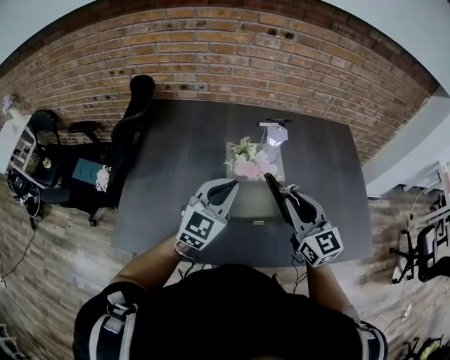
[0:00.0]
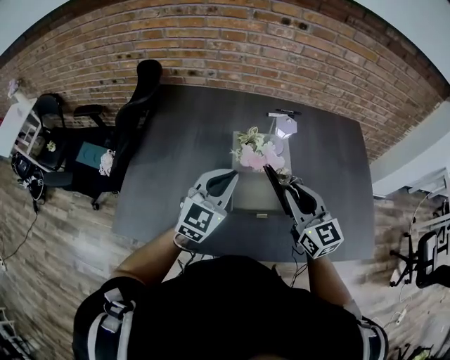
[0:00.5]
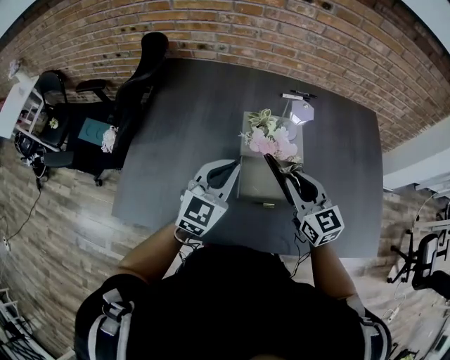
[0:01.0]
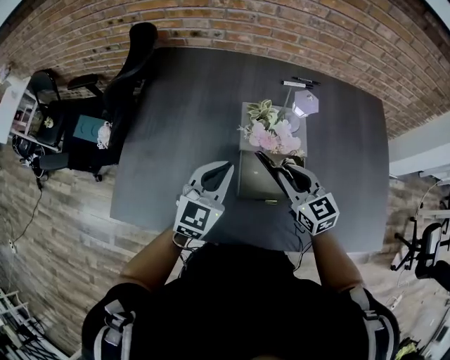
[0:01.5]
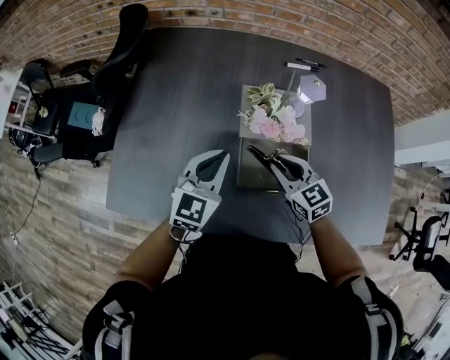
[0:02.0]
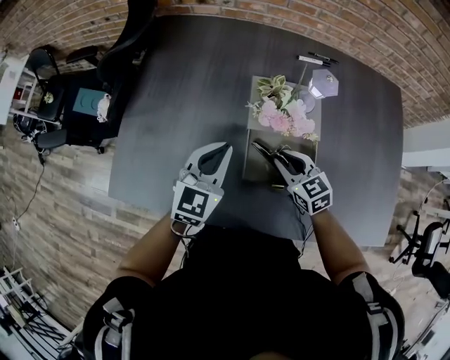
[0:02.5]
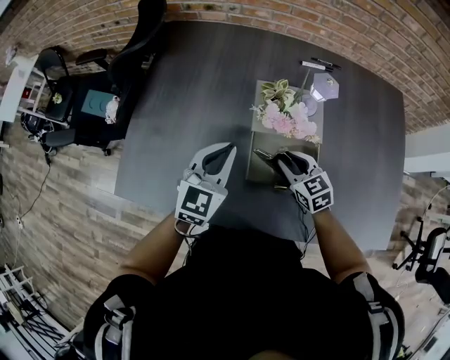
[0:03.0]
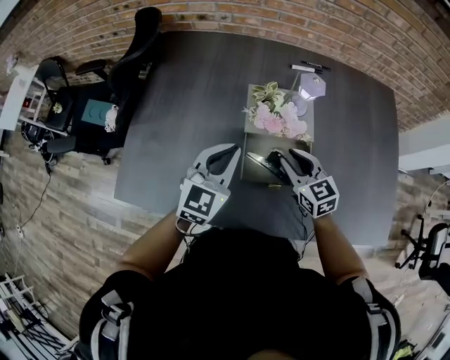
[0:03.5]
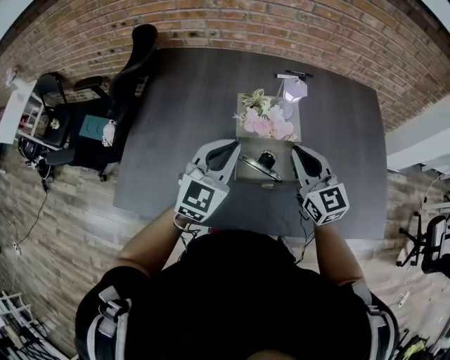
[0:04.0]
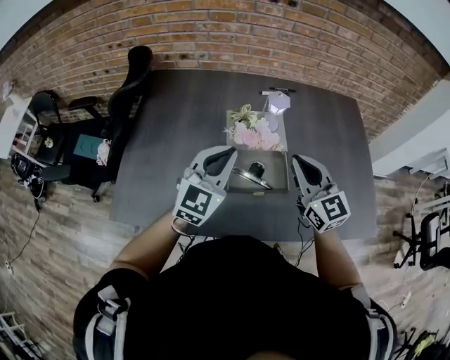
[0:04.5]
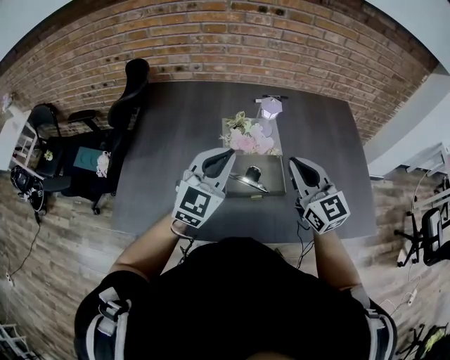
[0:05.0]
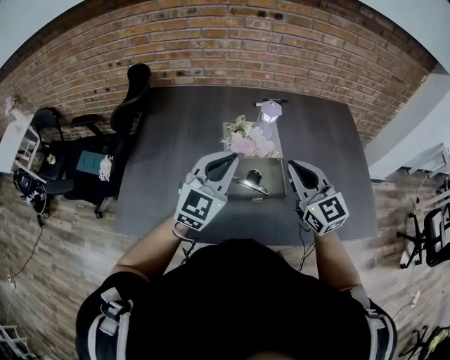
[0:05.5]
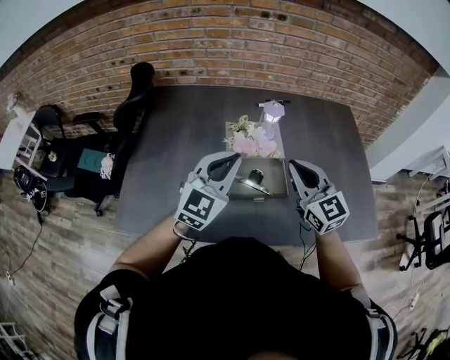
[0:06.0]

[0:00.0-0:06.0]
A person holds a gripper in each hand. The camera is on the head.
0:00.0 to 0:02.0: The right gripper travels downward and forward by approximately 20 cm, and swivels roughly 30 degrees. Meanwhile the left gripper shifts roughly 10 cm downward.
0:02.0 to 0:04.0: The left gripper shifts roughly 10 cm upward. The right gripper heads upward, covering roughly 15 cm, and rotates approximately 20 degrees.
0:04.0 to 0:06.0: The right gripper heads upward and backward, covering about 10 cm. Meanwhile the left gripper goes some 5 cm upward.

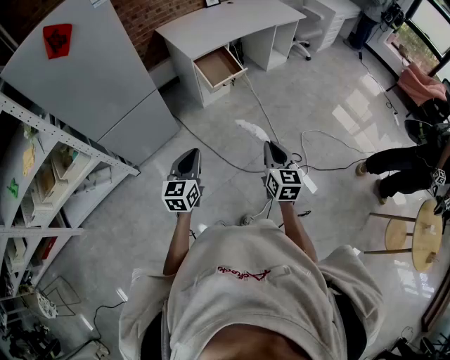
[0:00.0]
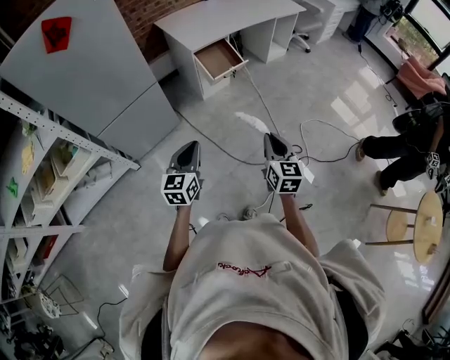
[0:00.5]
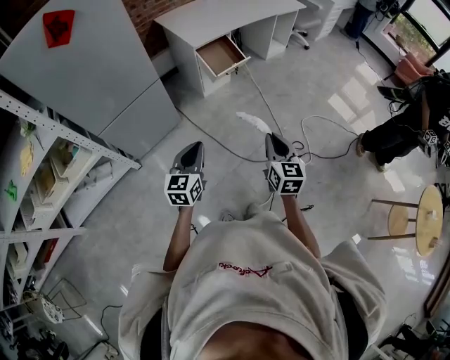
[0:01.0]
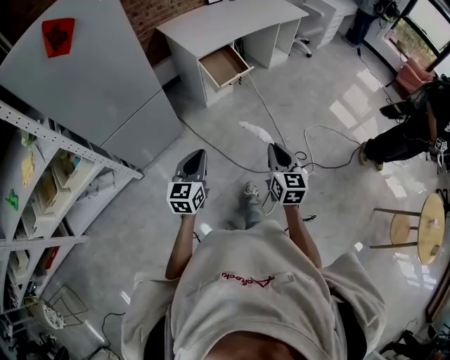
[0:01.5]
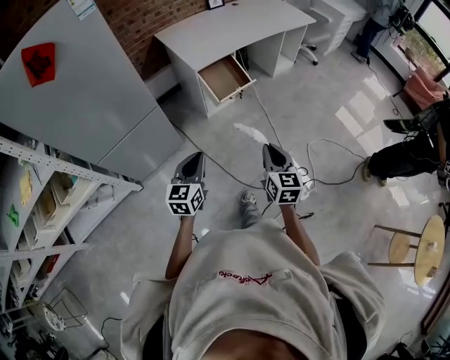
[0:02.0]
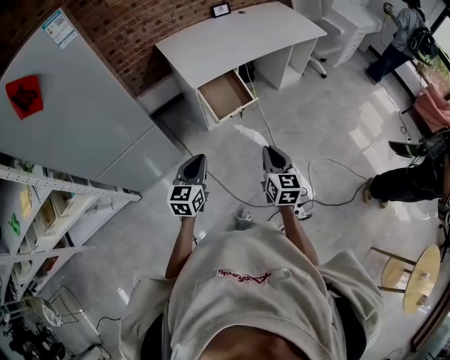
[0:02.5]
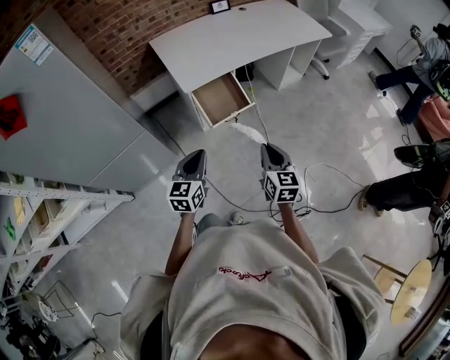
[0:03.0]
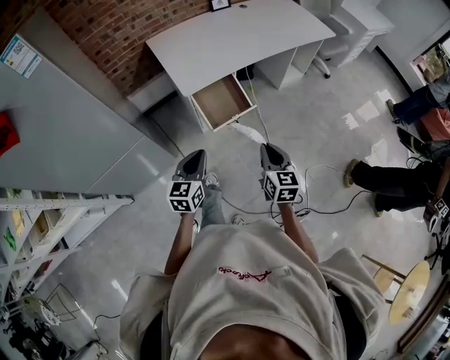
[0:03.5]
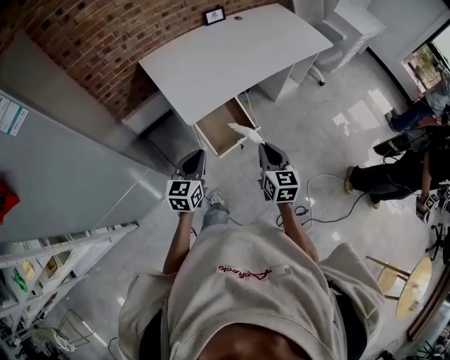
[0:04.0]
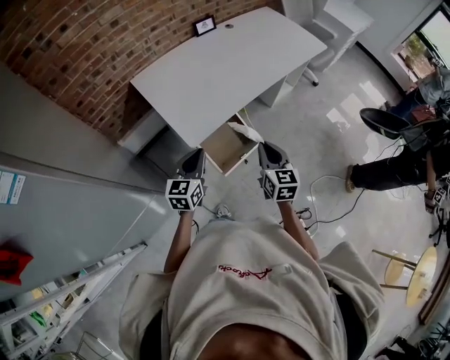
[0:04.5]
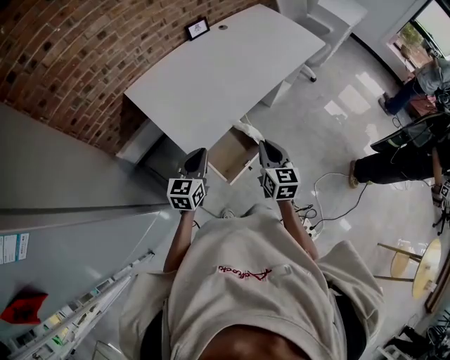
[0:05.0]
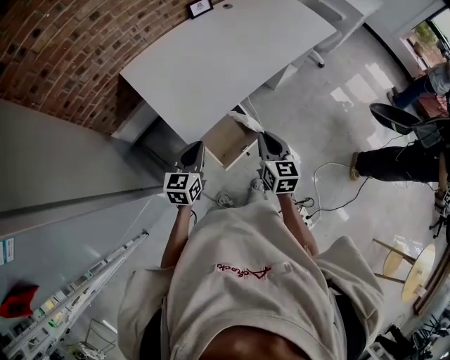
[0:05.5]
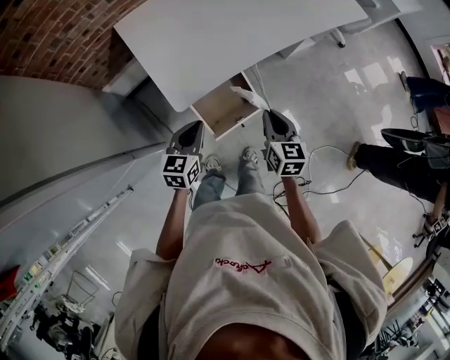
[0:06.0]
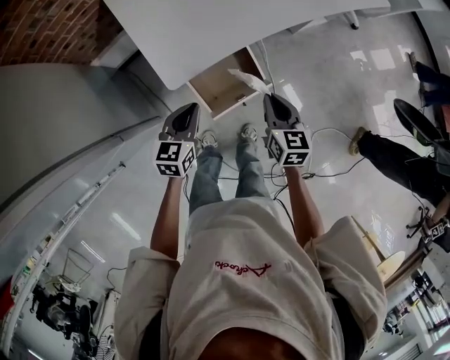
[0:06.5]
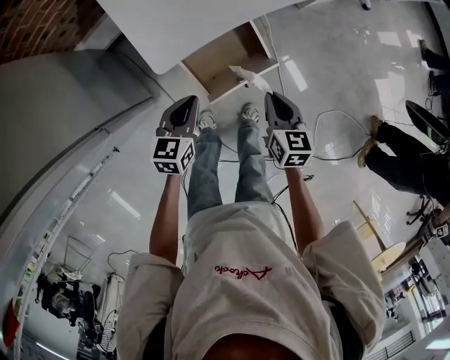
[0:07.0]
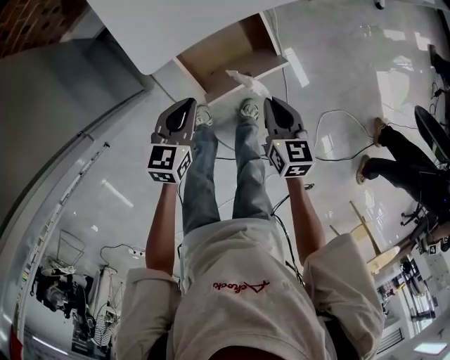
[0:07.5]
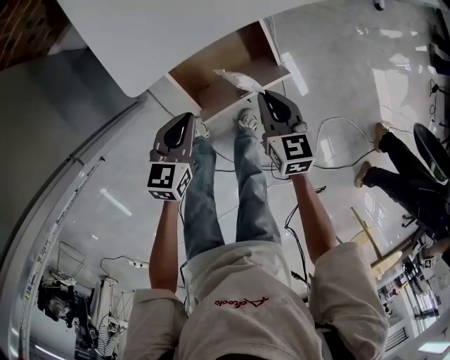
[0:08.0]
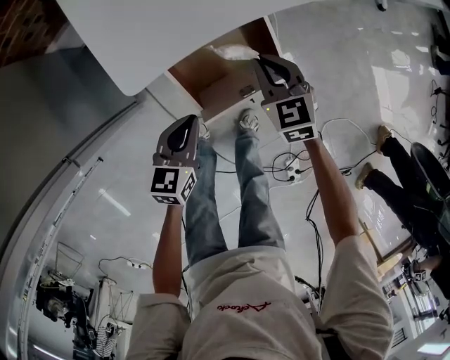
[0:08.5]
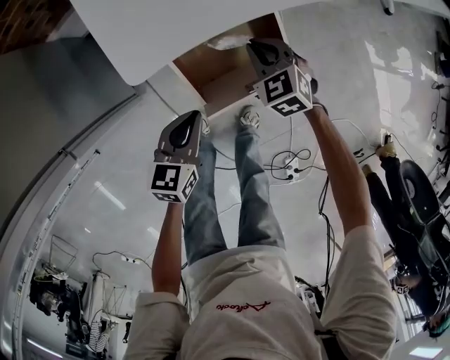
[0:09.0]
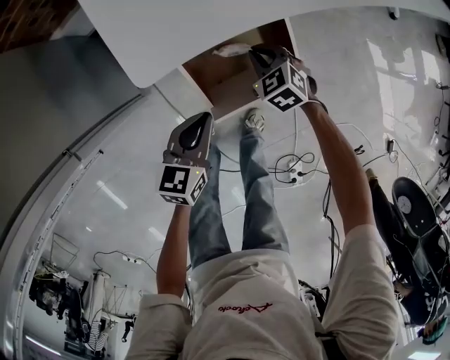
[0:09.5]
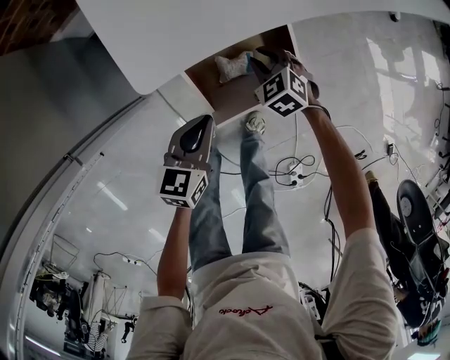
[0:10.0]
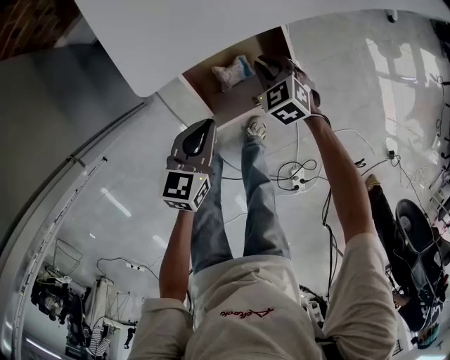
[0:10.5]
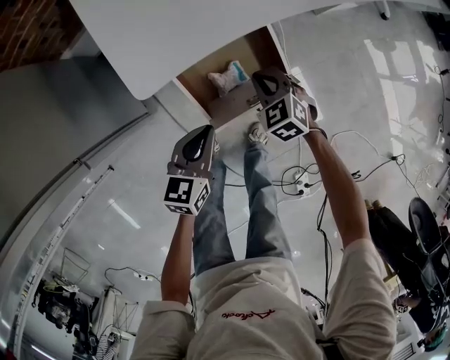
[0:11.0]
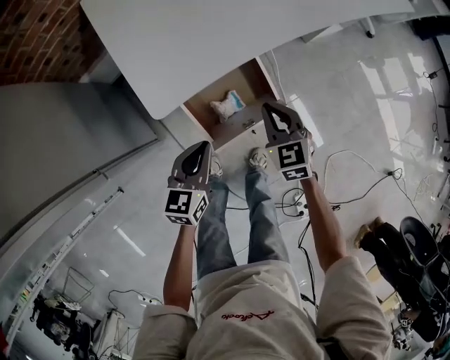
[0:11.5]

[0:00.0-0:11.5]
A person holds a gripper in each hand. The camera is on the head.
0:00.0 to 0:02.0: The left gripper goes approximately 15 cm forward, while the right gripper goes approximately 15 cm forward and to the left.
0:02.0 to 0:04.0: Both grippers move forward, about 40 cm.
0:04.0 to 0:06.0: The two grippers go roughly 20 cm forward and downward.
0:06.0 to 0:07.5: The grippers both shift downward by approximately 20 cm.
0:07.5 to 0:09.5: The left gripper shifts approximately 5 cm downward; the right gripper shifts approximately 20 cm downward, forward and to the left, and rolls counterclockwise, seen from behind, by approximately 50 degrees.
0:09.5 to 0:11.5: The right gripper is displaced upward by roughly 15 cm, and changes its angle by about 30 degrees. The left gripper moves upward, about 10 cm.

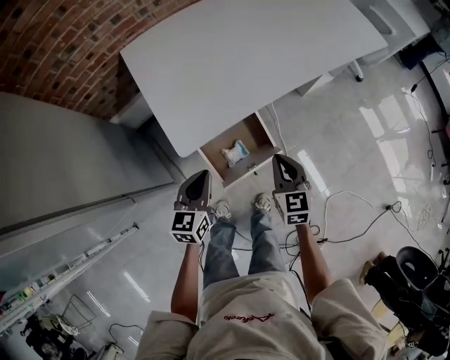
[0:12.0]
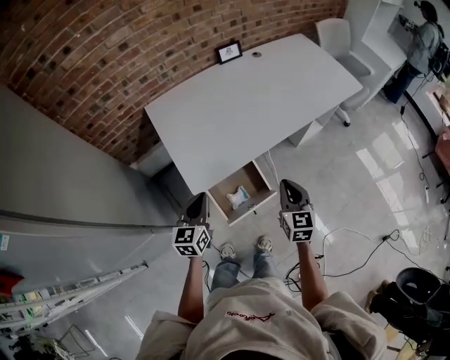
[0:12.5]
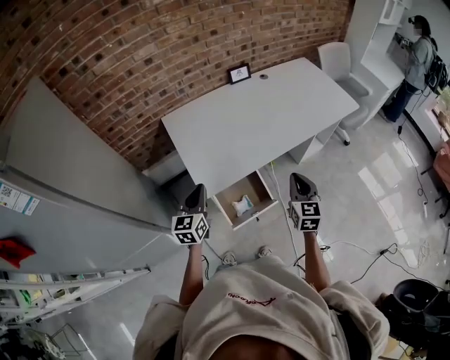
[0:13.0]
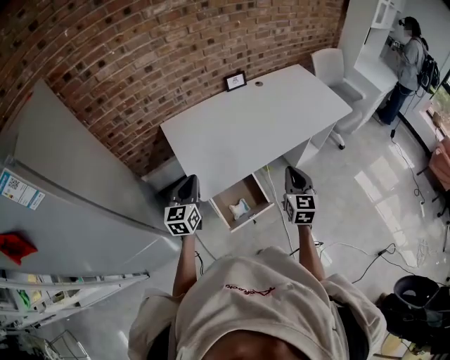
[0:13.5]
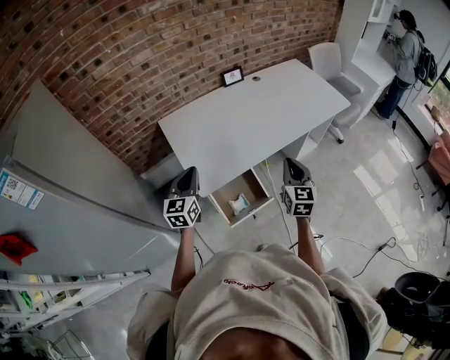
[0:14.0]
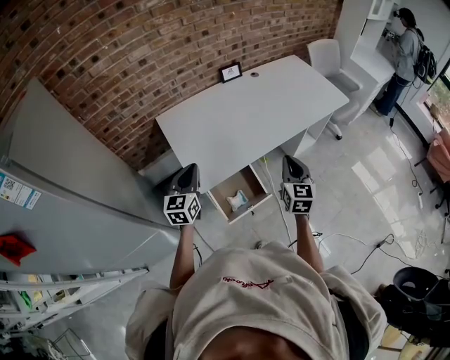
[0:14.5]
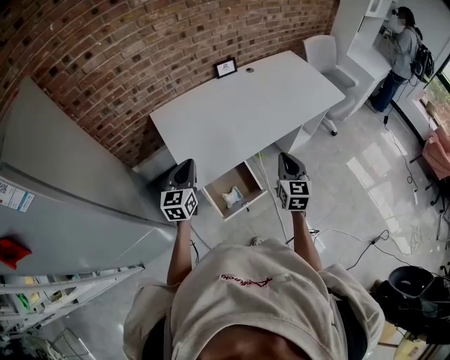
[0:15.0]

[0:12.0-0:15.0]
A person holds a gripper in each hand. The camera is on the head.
0:12.0 to 0:13.5: Both grippers travel together upward, roughly 25 cm.
0:13.5 to 0:15.0: The grippers make only small movements.

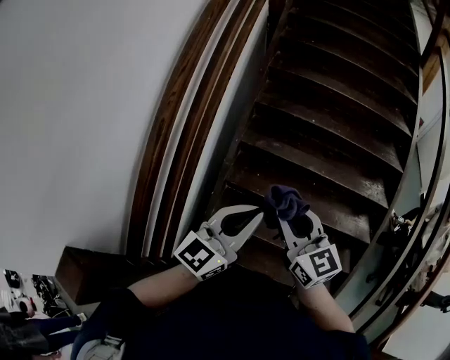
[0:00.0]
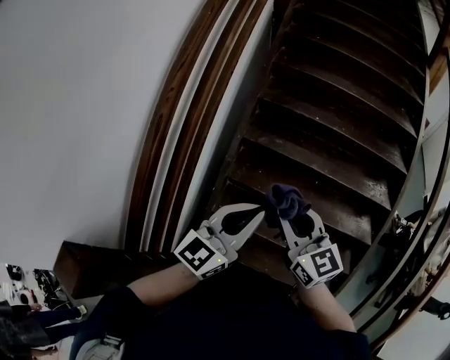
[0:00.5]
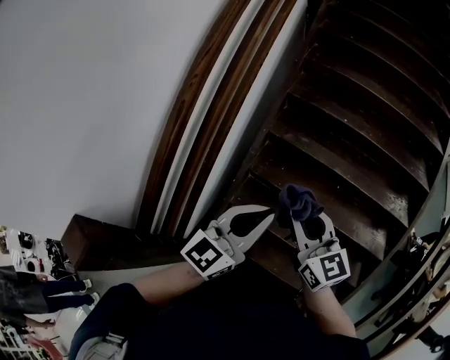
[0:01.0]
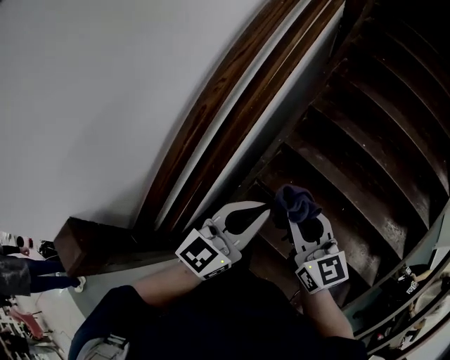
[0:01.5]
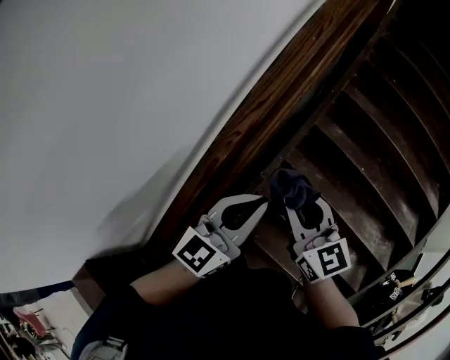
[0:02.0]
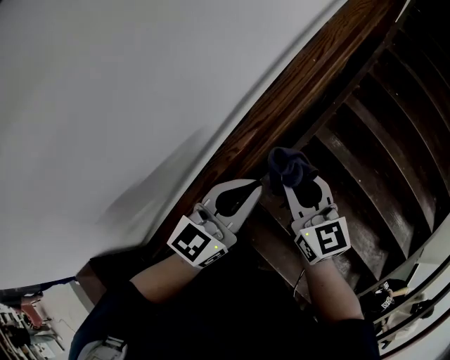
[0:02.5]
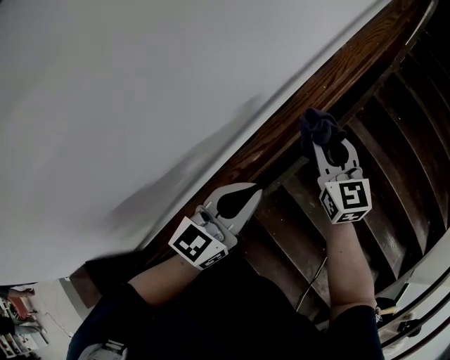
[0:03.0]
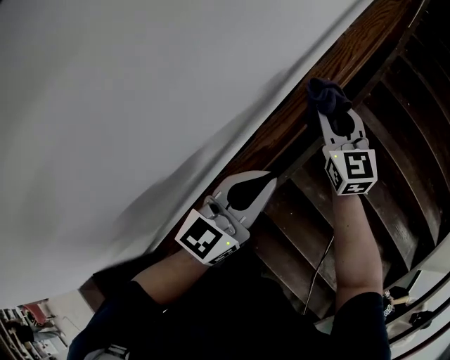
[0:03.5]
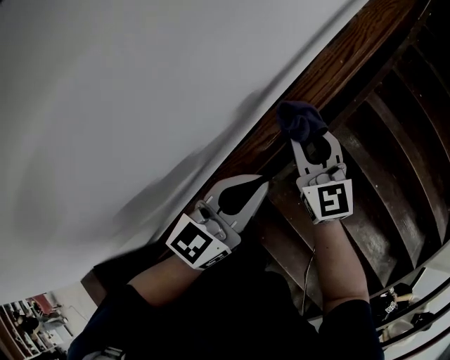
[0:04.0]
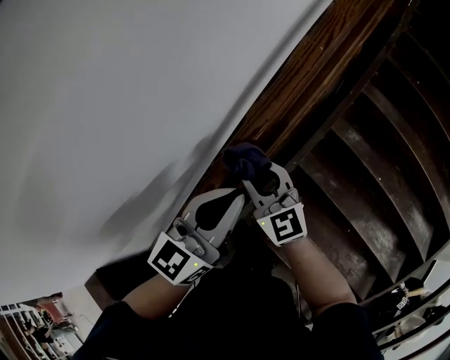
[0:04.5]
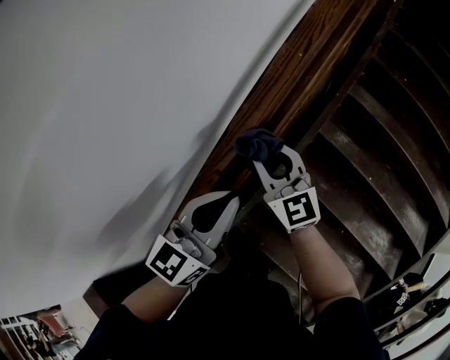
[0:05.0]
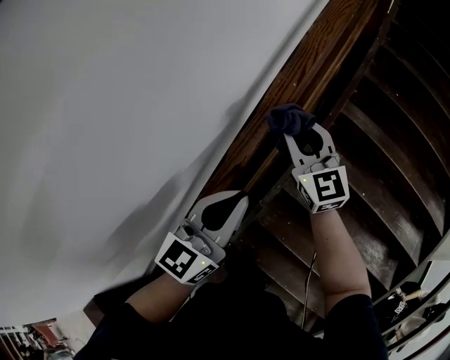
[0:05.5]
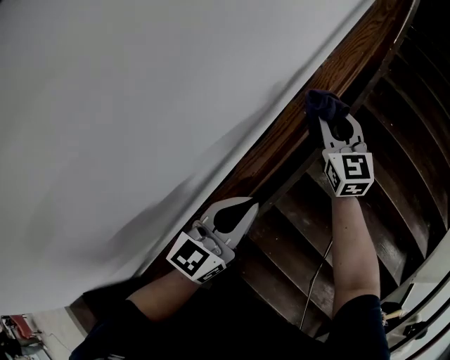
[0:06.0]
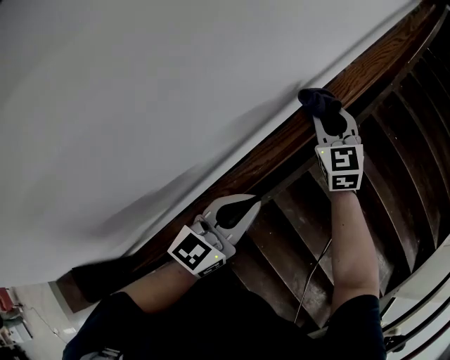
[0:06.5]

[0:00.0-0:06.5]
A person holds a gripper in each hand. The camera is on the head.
0:00.0 to 0:02.0: Both grippers move forward and to the left, about 30 cm. The left gripper swivels about 20 degrees.
0:02.0 to 0:04.5: The right gripper goes some 15 cm forward and to the left; the left gripper shifts roughly 10 cm forward.
0:04.5 to 0:06.5: The right gripper heads forward, upward and to the right, covering some 30 cm, and swivels some 30 degrees.
